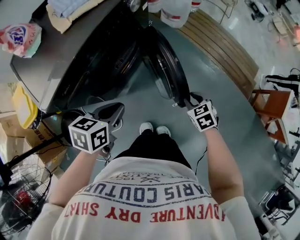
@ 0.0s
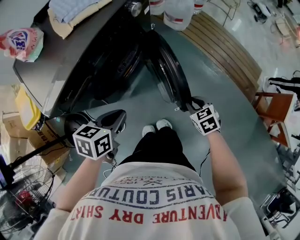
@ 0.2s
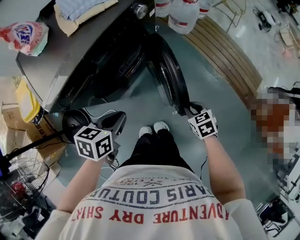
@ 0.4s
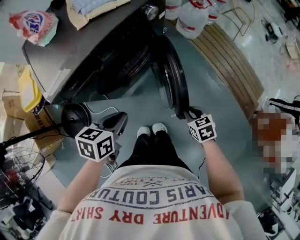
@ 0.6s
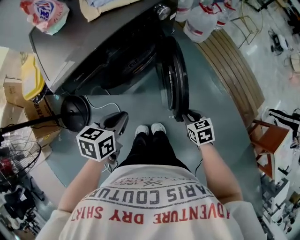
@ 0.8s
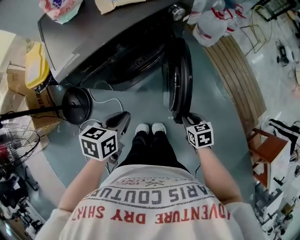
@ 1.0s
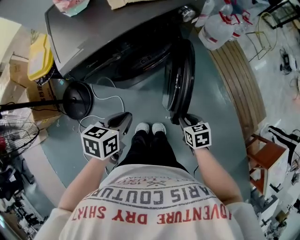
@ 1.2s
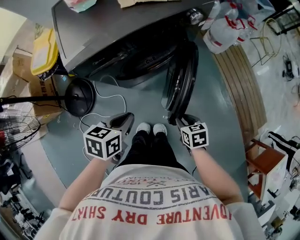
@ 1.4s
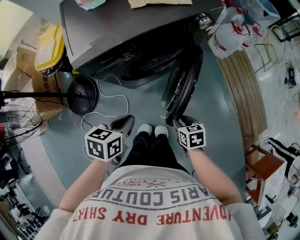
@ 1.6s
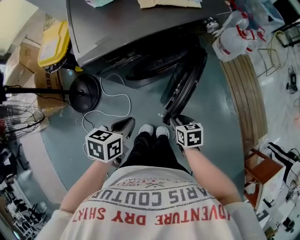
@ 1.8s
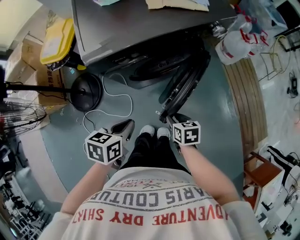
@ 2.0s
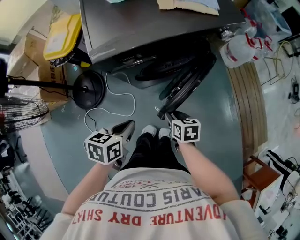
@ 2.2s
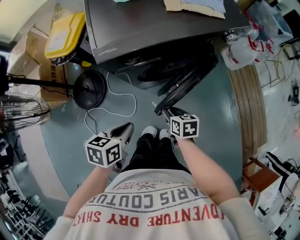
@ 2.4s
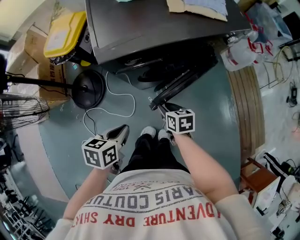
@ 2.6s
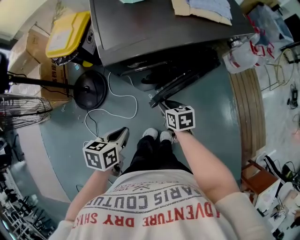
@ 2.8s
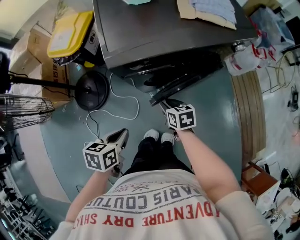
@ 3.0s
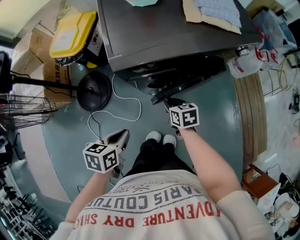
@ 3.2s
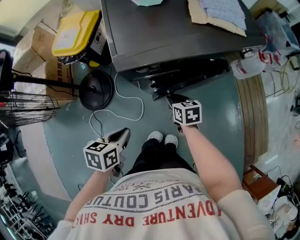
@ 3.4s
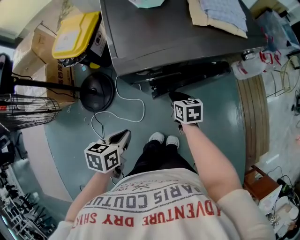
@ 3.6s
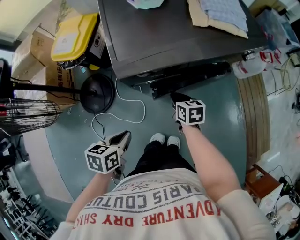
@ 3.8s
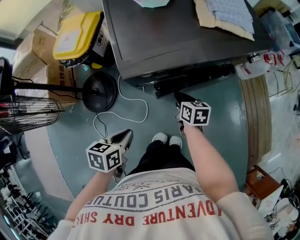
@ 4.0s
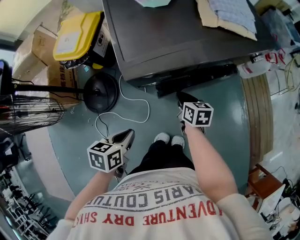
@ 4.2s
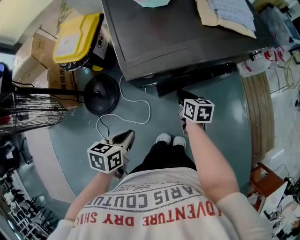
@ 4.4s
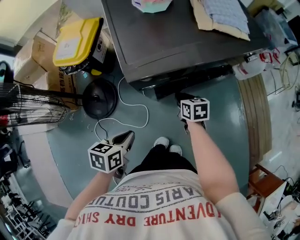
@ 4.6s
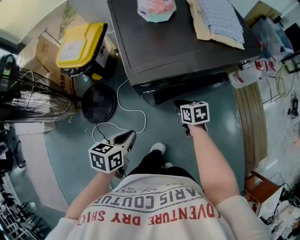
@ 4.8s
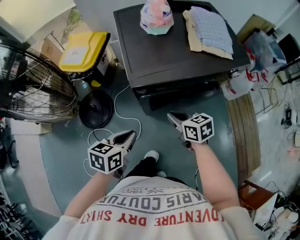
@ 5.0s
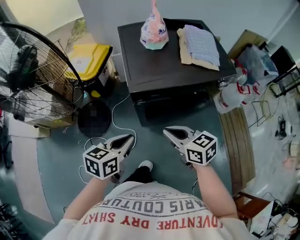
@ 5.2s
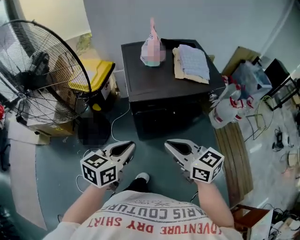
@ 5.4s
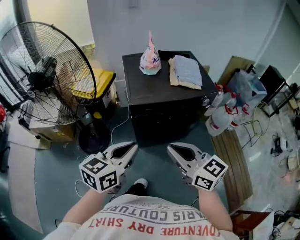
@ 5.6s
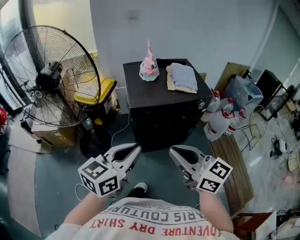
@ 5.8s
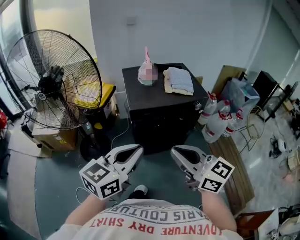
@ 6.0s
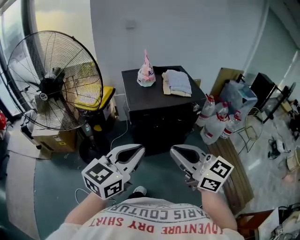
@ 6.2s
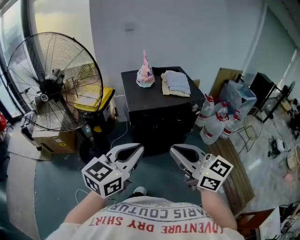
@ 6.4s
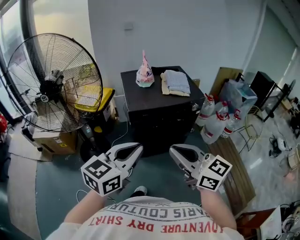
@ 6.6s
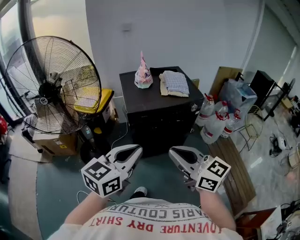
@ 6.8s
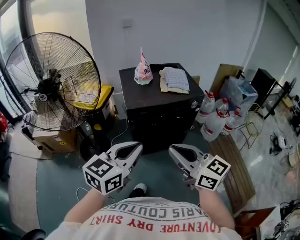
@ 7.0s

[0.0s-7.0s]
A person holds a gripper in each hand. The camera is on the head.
0.0s to 1.4s: The left gripper moves some 5 cm, and changes its angle by some 30 degrees. The right gripper ends up about 10 cm from where it was.
1.4s to 2.8s: The right gripper is displaced to the left and forward by about 25 cm. The left gripper travels to the left by some 15 cm.
2.8s to 4.2s: The right gripper shifts approximately 10 cm forward, and closes. Meanwhile the left gripper heads to the left, covering approximately 5 cm.
4.2s to 5.6s: The left gripper goes some 30 cm upward, and tips its fingers upward by roughly 40 degrees. Meanwhile the right gripper moves upward and backward, roughly 50 cm, and angles its fingers upward, by roughly 30 degrees.
5.6s to 7.0s: The left gripper shifts roughly 10 cm upward and backward, while the right gripper heads backward and upward, covering roughly 10 cm.

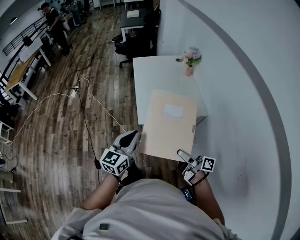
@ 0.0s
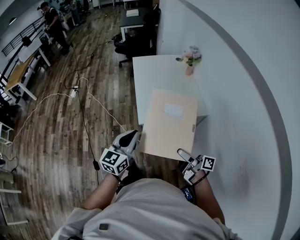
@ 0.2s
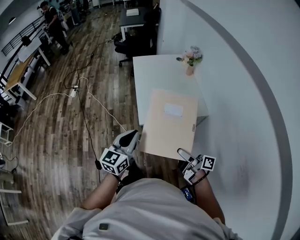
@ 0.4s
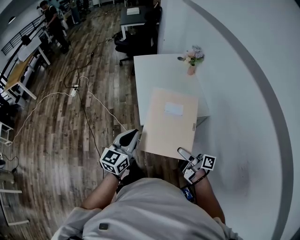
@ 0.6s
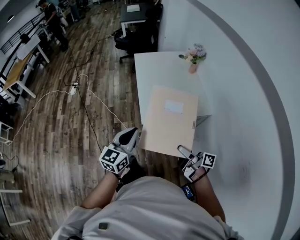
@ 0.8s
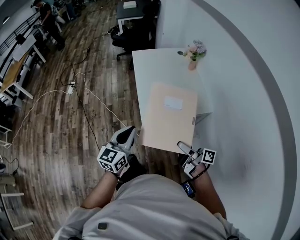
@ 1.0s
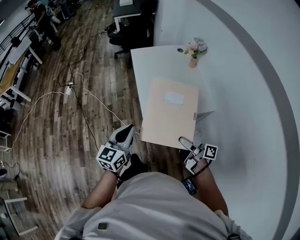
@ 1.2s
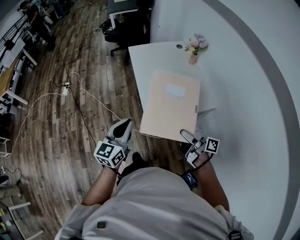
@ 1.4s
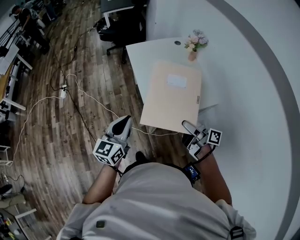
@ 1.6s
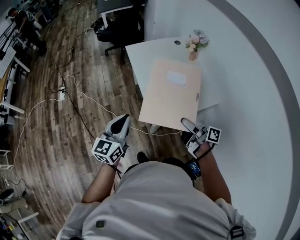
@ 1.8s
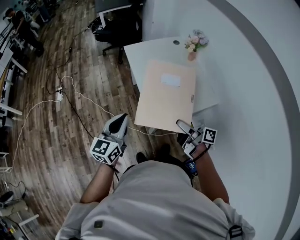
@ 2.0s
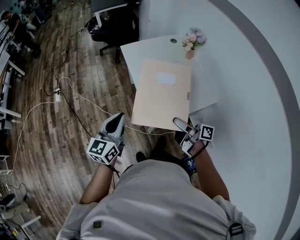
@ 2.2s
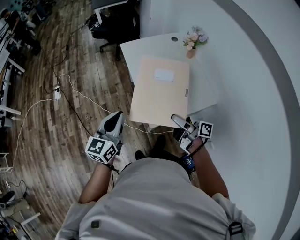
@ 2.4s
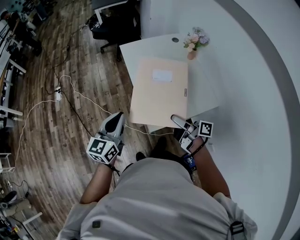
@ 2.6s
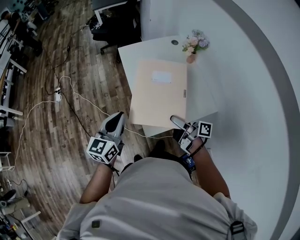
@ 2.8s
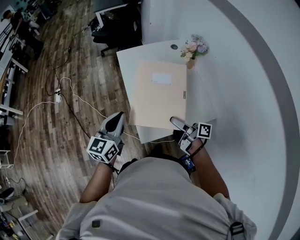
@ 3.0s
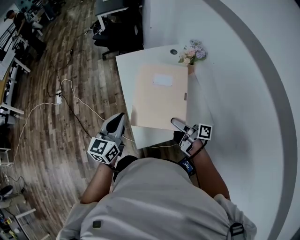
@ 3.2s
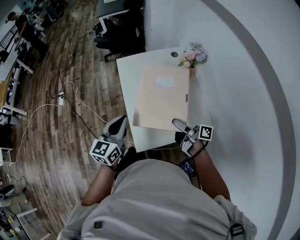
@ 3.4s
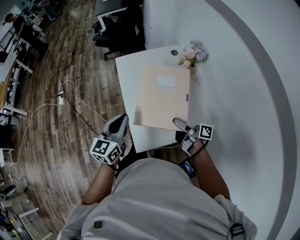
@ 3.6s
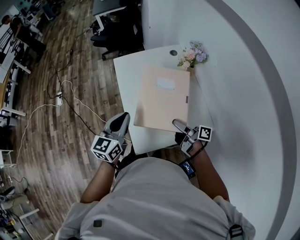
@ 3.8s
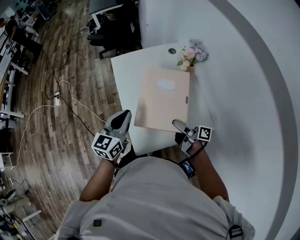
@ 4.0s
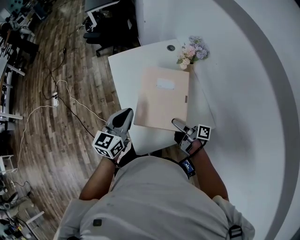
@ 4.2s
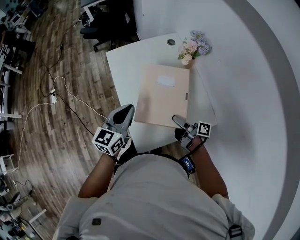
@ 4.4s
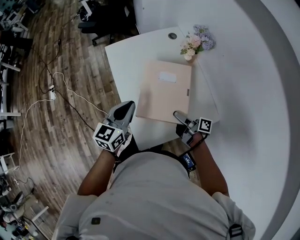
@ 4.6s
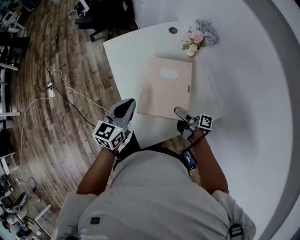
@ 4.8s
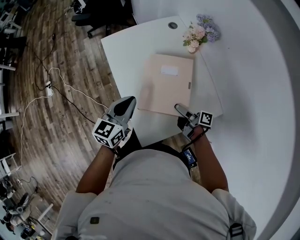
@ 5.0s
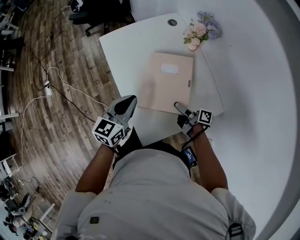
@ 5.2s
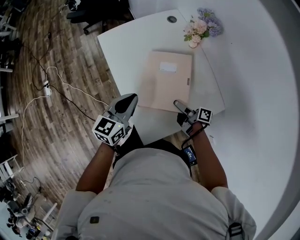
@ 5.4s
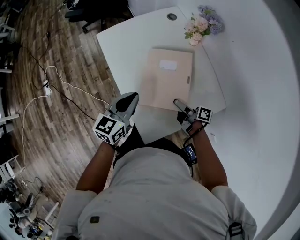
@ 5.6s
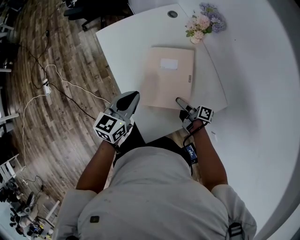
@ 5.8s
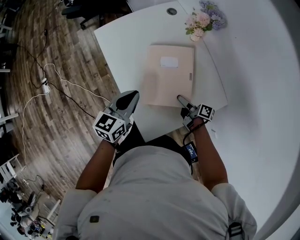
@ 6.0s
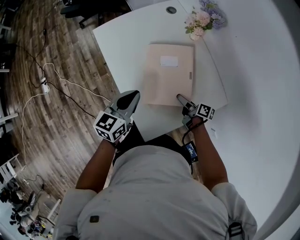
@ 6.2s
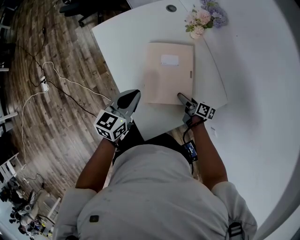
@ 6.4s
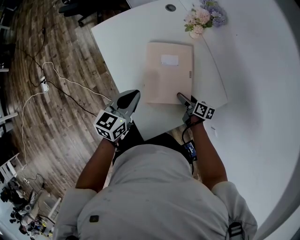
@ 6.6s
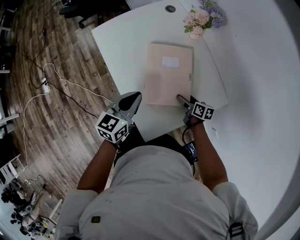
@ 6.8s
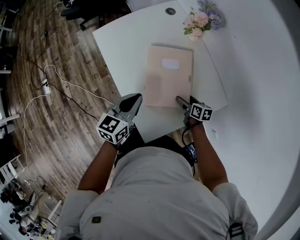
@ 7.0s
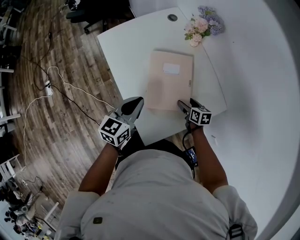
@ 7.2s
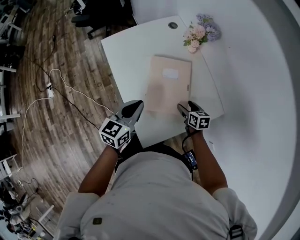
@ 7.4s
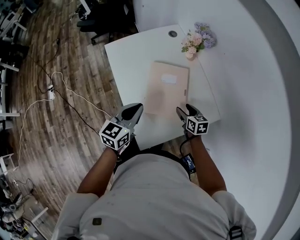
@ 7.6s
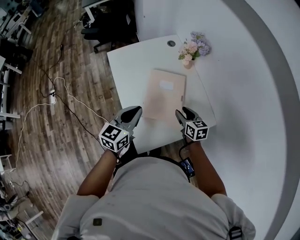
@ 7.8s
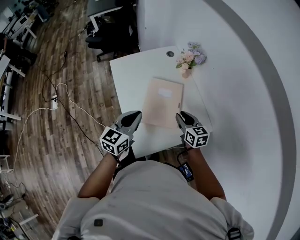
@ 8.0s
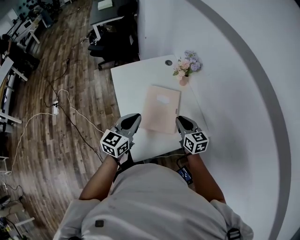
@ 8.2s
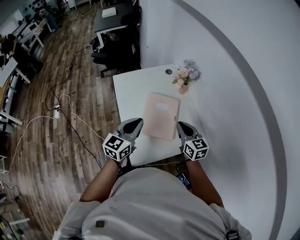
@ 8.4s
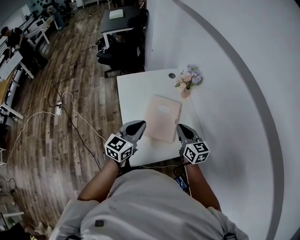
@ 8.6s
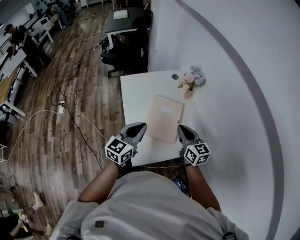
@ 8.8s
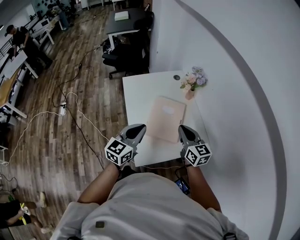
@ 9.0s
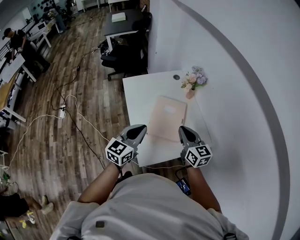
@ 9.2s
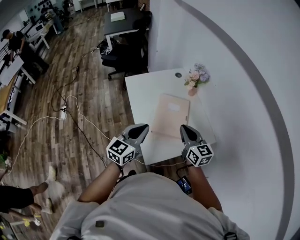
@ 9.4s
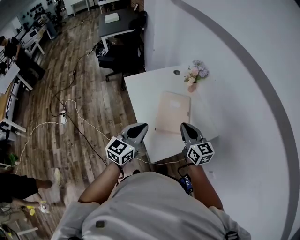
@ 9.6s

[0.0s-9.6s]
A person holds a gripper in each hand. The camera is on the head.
0.0s to 1.6s: The right gripper heads forward, covering about 20 cm. The left gripper moves forward and to the left, about 20 cm.
1.6s to 3.2s: Both grippers move forward and to the right, some 25 cm.
3.2s to 4.8s: The left gripper moves forward, downward and to the right, roughly 15 cm, while the right gripper shifts roughly 15 cm downward and forward.
4.8s to 6.4s: The right gripper shifts approximately 10 cm downward, and swivels approximately 30 degrees. Meanwhile the left gripper is displaced downward by about 5 cm.
6.4s to 8.0s: The right gripper heads upward, covering about 20 cm, rolls counterclockwise, seen from behind, by about 50 degrees, and closes up. The left gripper goes roughly 10 cm upward and backward.
8.0s to 9.6s: The left gripper goes roughly 15 cm backward, upward and to the left; the right gripper moves upward, backward and to the left, approximately 20 cm.

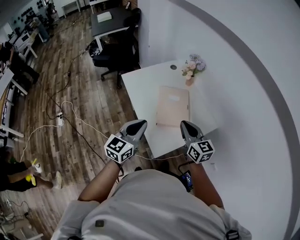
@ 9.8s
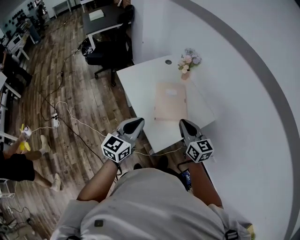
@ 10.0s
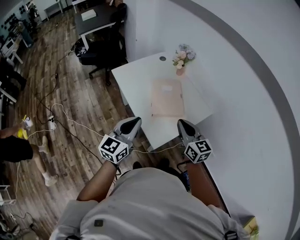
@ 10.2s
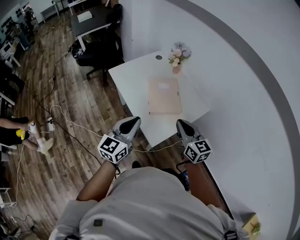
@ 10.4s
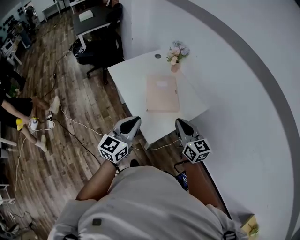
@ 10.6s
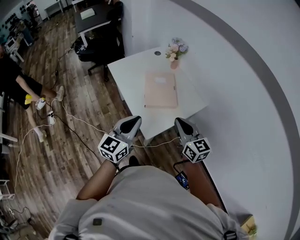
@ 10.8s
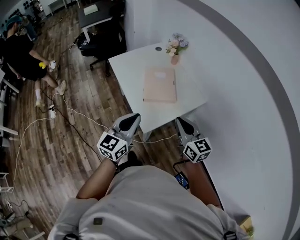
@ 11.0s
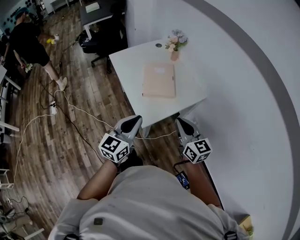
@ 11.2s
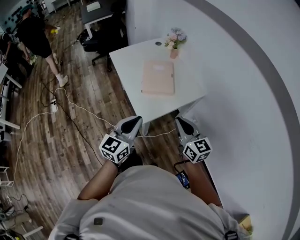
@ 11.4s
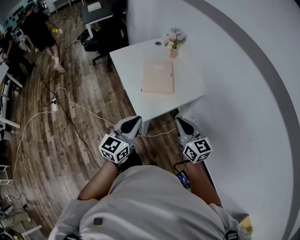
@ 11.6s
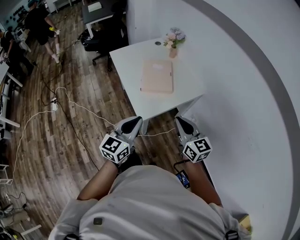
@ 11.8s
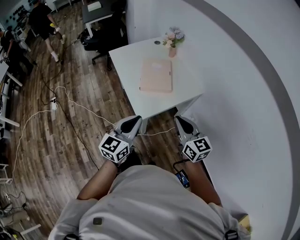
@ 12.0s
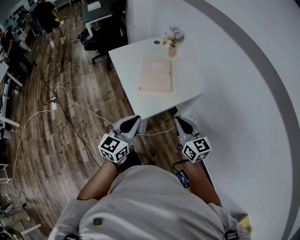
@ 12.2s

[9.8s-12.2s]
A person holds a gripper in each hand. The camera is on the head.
9.8s to 11.0s: The two grippers go roughly 15 cm backward and to the right.
11.0s to 12.2s: The right gripper moves backward, some 10 cm. The left gripper is displaced backward and to the right by some 10 cm.

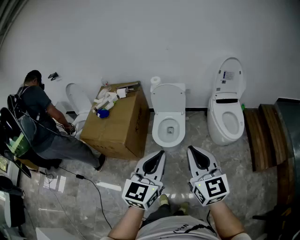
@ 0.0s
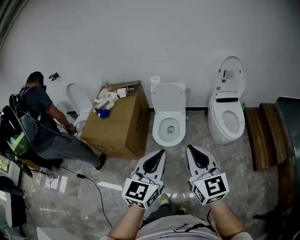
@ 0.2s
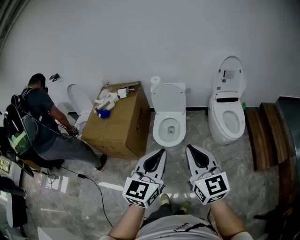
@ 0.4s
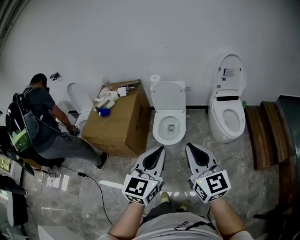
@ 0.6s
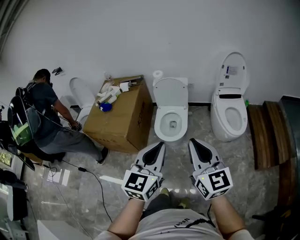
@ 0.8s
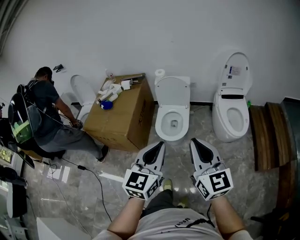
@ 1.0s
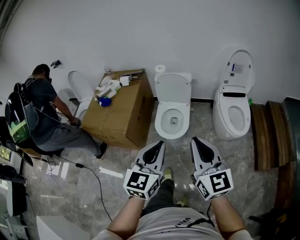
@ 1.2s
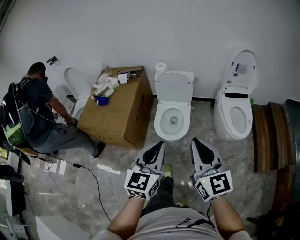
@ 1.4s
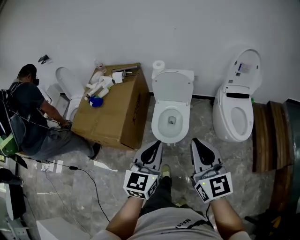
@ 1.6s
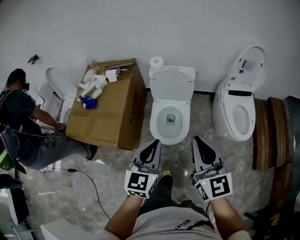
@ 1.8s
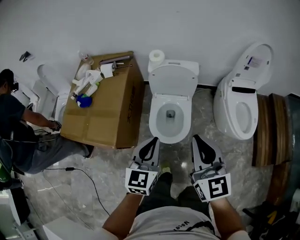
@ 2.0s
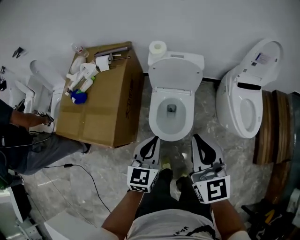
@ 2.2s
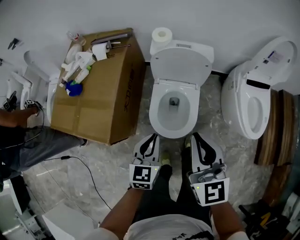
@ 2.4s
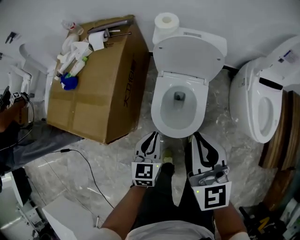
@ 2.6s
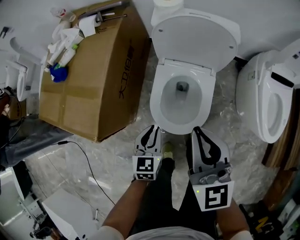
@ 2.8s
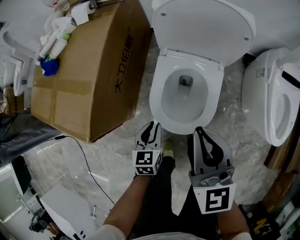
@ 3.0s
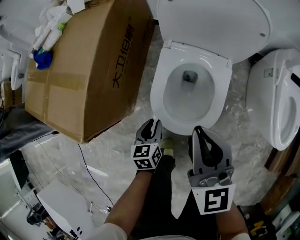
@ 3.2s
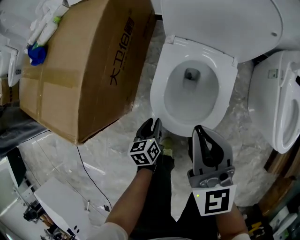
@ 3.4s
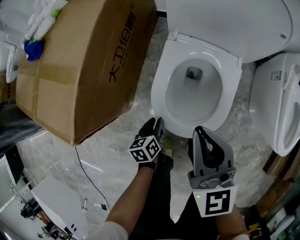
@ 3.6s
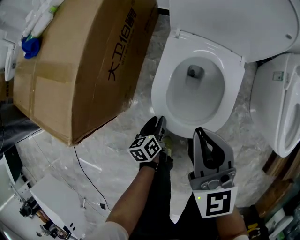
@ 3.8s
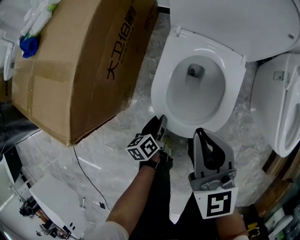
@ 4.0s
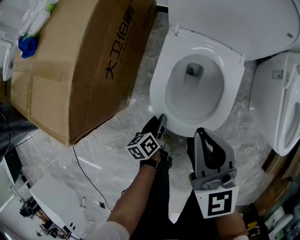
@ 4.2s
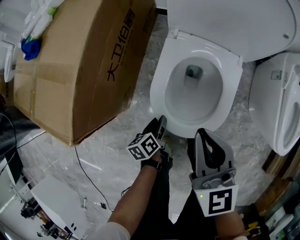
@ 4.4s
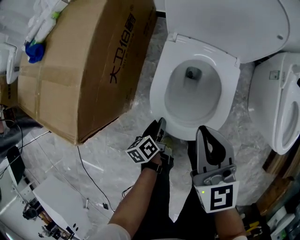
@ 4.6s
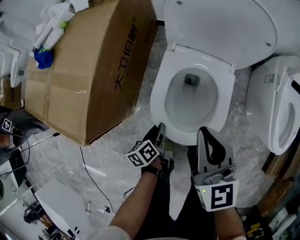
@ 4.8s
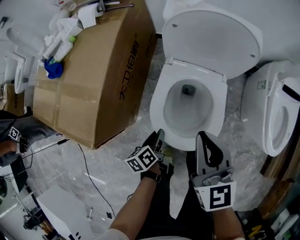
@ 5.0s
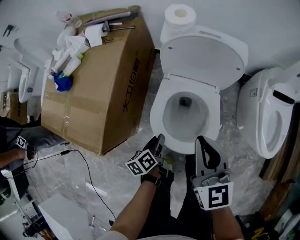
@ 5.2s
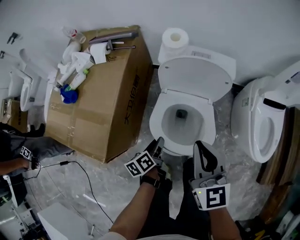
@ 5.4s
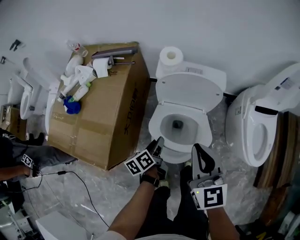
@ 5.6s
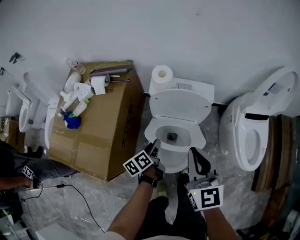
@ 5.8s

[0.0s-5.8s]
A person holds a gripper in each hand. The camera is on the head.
0.0s to 1.4s: The left gripper travels forward and downward by some 10 cm. Meanwhile the right gripper shifts some 10 cm forward.
1.4s to 2.8s: The left gripper shifts about 60 cm downward and forward, and changes its angle by approximately 30 degrees; the right gripper is displaced forward and downward by roughly 50 cm.
2.8s to 4.4s: The grippers both shift downward by roughly 25 cm. The left gripper rolls counterclockwise, seen from behind, by roughly 50 degrees.
4.4s to 5.8s: The right gripper travels upward by roughly 30 cm. The left gripper travels upward and forward by roughly 35 cm.
